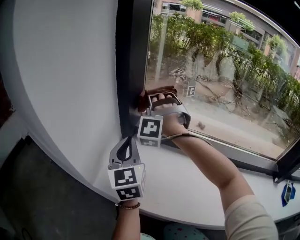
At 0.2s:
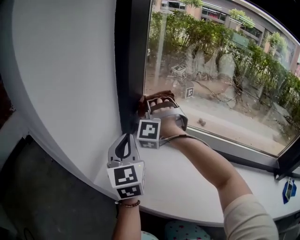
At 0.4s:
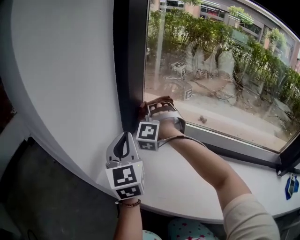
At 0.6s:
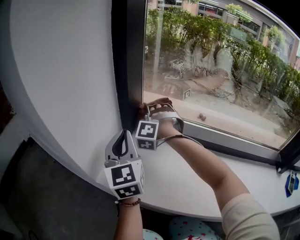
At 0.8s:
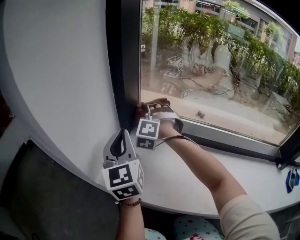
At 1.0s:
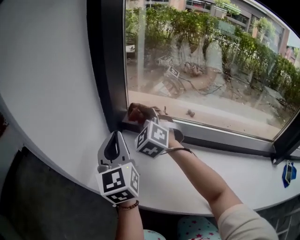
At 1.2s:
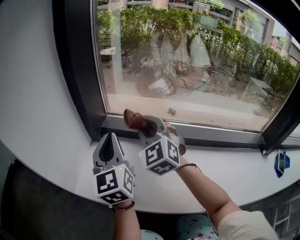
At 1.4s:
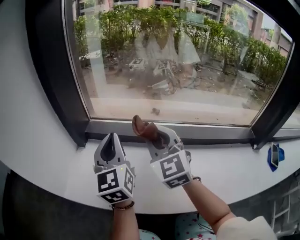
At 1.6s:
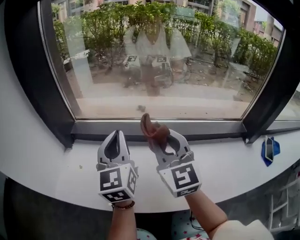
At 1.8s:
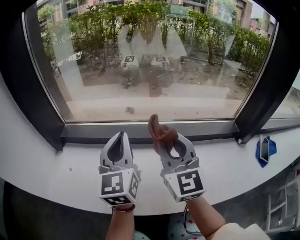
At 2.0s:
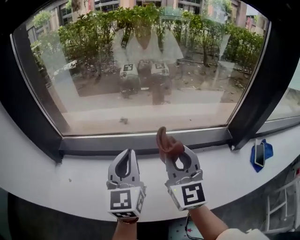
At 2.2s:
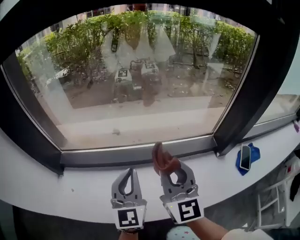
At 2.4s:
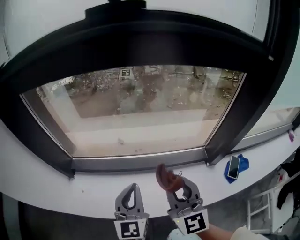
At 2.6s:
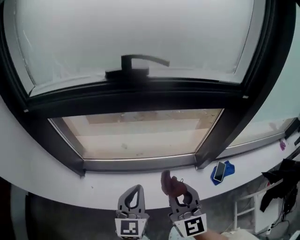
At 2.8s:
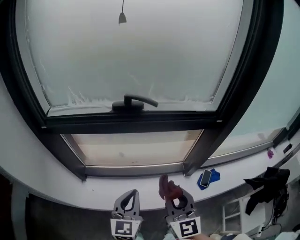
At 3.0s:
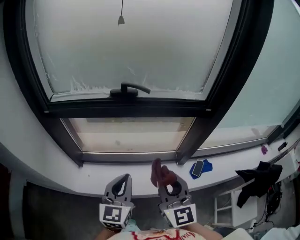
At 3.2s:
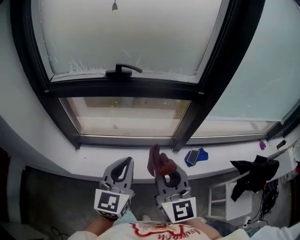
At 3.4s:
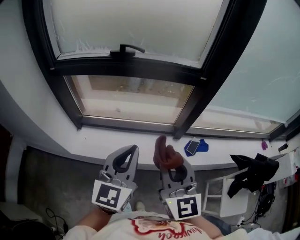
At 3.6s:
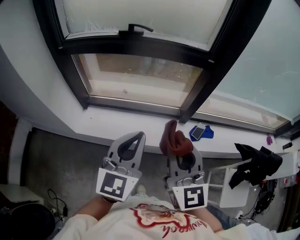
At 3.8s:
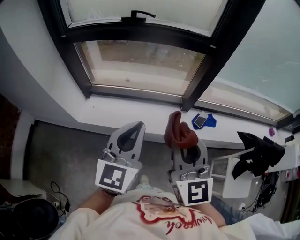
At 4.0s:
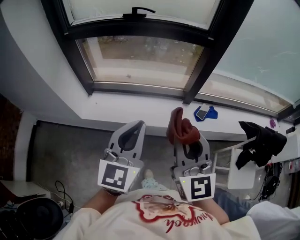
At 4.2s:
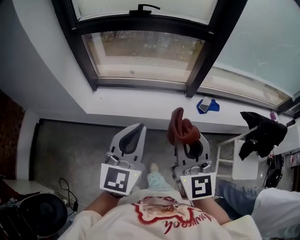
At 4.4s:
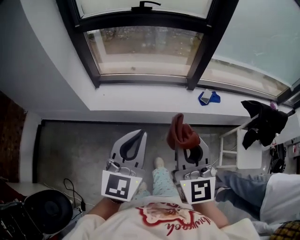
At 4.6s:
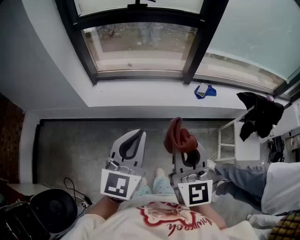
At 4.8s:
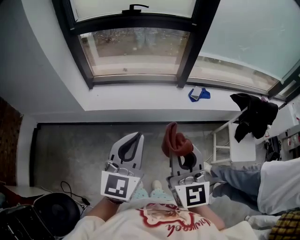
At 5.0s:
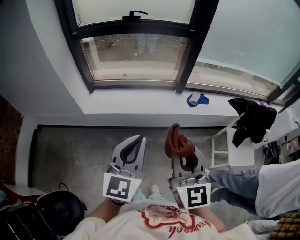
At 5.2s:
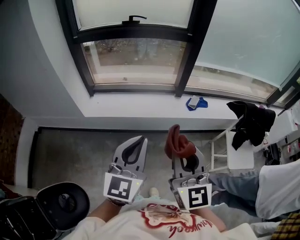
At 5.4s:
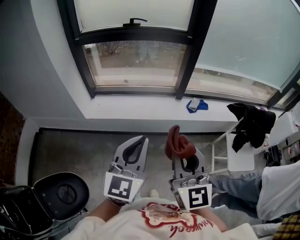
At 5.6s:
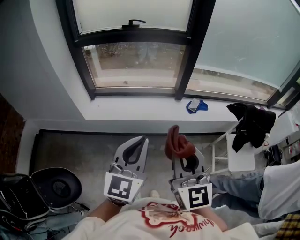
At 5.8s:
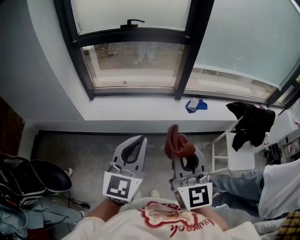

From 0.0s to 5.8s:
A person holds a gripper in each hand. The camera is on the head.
From 0.0s to 1.4s: The left gripper ends up roughly 15 cm from where it was.
From 1.4s to 2.8s: The left gripper heads upward, covering roughly 40 cm, and changes its angle by approximately 30 degrees.
From 2.8s to 4.4s: The left gripper changes place by approximately 40 cm.
From 4.4s to 5.8s: The left gripper ends up about 10 cm from where it was.

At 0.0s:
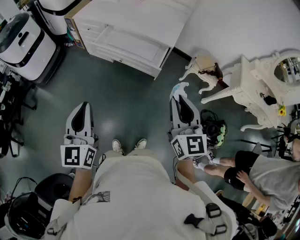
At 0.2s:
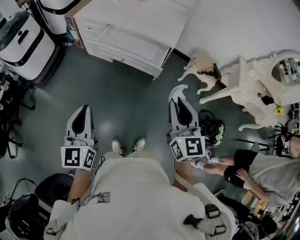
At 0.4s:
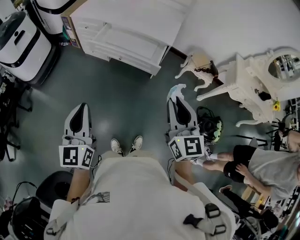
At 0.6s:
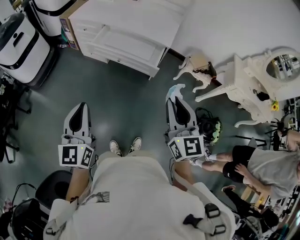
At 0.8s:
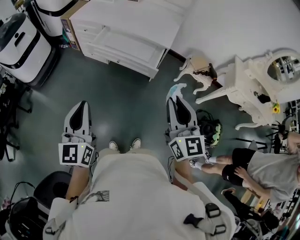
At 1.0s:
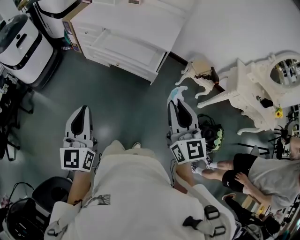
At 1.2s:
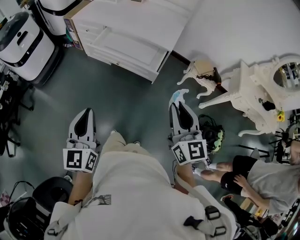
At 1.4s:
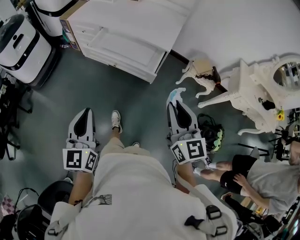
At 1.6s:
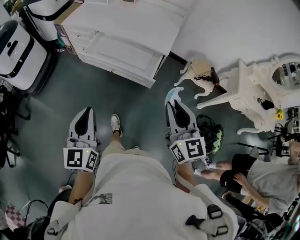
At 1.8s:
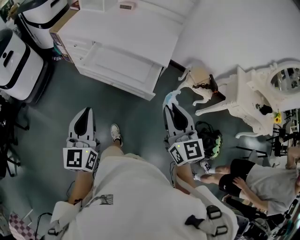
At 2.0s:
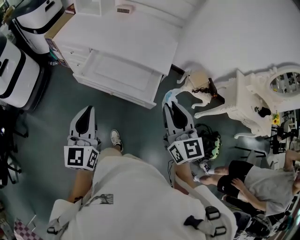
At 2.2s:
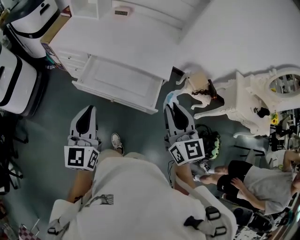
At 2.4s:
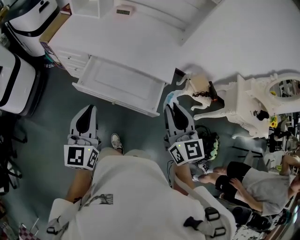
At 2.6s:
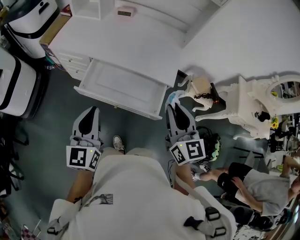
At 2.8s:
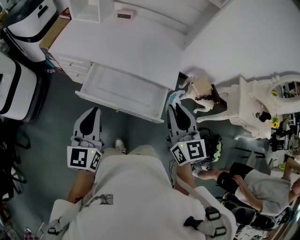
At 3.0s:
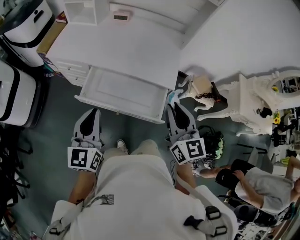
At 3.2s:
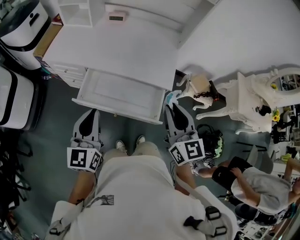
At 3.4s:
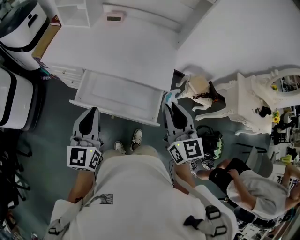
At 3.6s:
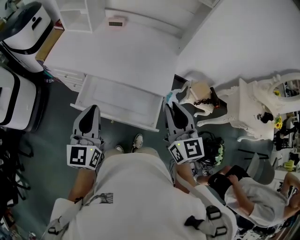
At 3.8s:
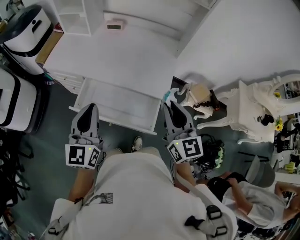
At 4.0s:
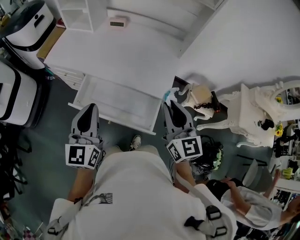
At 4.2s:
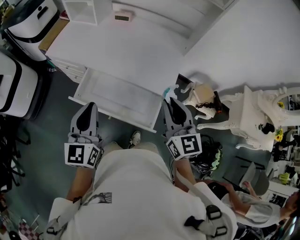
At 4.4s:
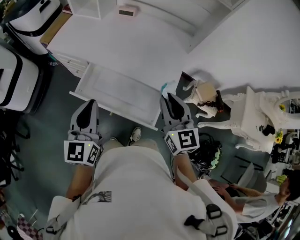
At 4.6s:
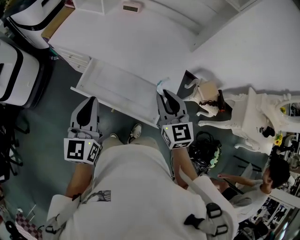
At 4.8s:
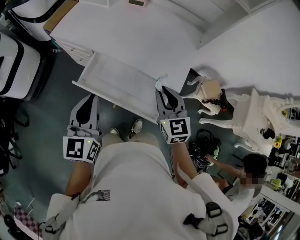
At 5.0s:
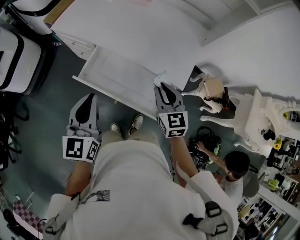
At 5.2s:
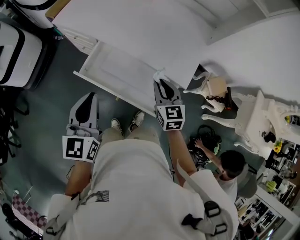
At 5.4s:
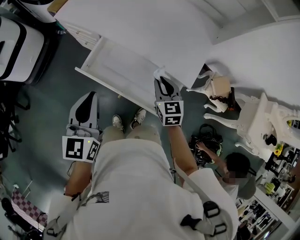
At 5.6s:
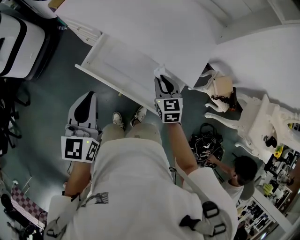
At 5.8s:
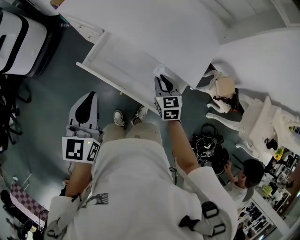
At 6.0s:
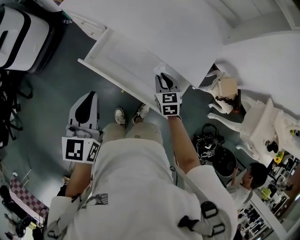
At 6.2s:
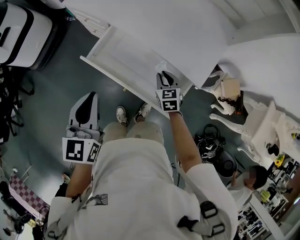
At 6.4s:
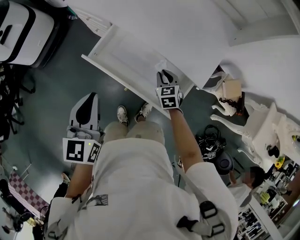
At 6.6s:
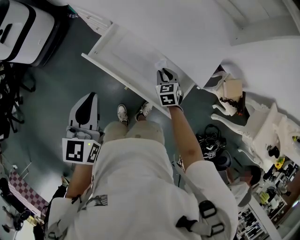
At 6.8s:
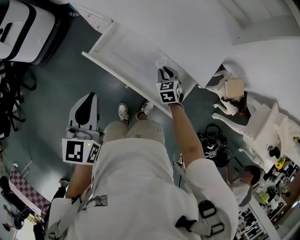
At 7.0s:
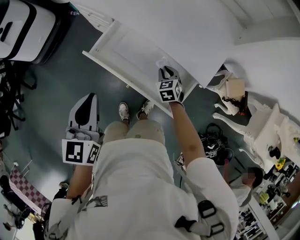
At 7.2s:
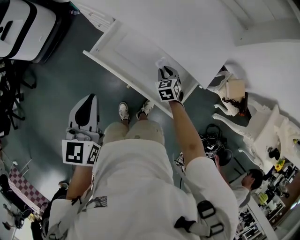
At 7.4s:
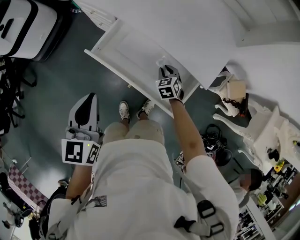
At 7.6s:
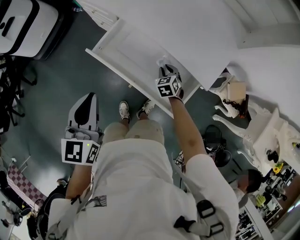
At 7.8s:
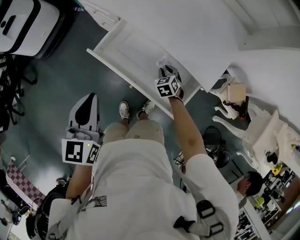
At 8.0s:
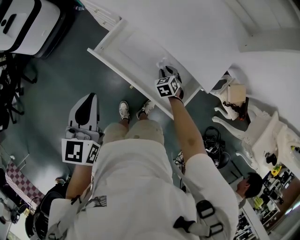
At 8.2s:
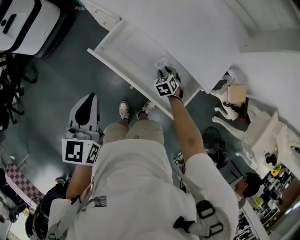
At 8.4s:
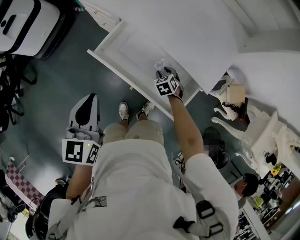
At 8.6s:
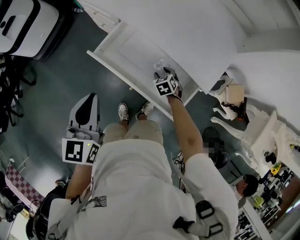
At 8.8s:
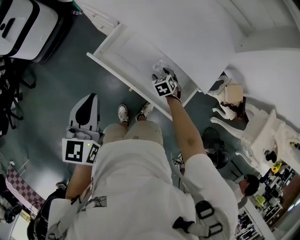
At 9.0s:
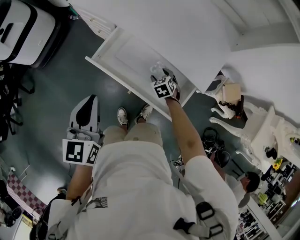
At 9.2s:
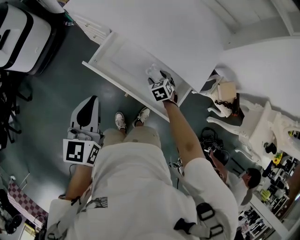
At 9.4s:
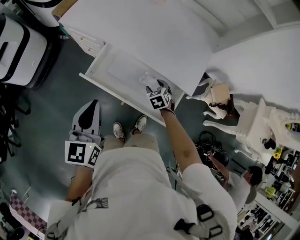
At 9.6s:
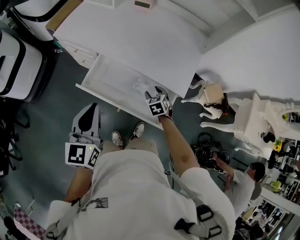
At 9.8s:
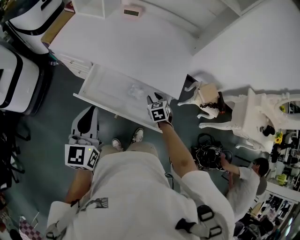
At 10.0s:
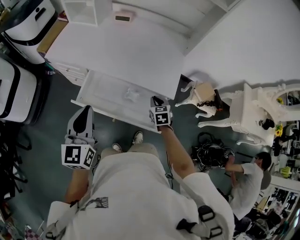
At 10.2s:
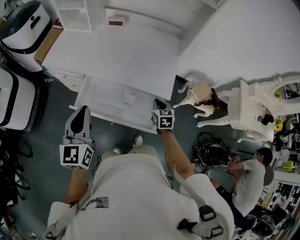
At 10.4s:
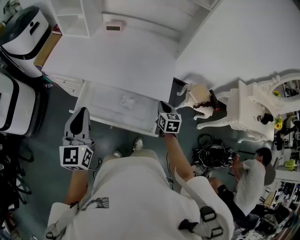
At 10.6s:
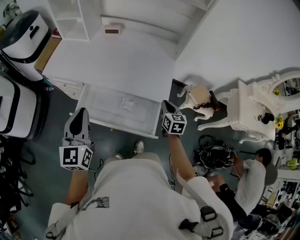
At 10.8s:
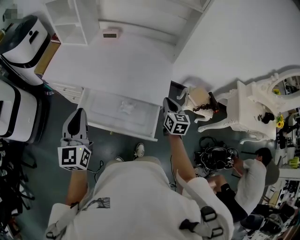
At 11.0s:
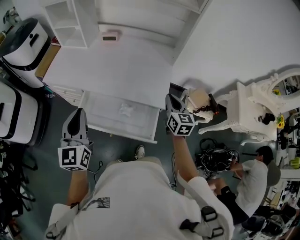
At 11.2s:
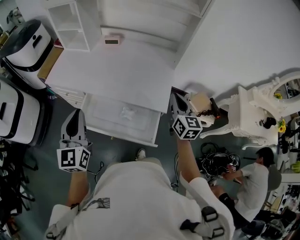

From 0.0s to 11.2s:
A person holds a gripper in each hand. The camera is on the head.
From 0.0s to 1.6s: The grippers both shift forward by about 10 cm.
From 1.6s to 3.2s: Both grippers travel together forward, about 30 cm.
From 3.2s to 4.8s: The left gripper ends up about 5 cm from where it was. The right gripper travels forward and downward by some 15 cm.
From 4.8s to 6.4s: The left gripper is displaced downward by some 5 cm. Meanwhile the right gripper shifts about 25 cm downward, and rotates approximately 30 degrees.
From 6.4s to 8.0s: The right gripper travels downward by roughly 10 cm.
From 8.0s to 9.6s: The right gripper shifts approximately 10 cm upward, and opens up, while the left gripper moves upward, some 5 cm.
From 9.6s to 11.2s: The left gripper goes about 10 cm upward, while the right gripper moves upward and to the right, about 35 cm, angles its fingers upward, by some 50 degrees, and closes.

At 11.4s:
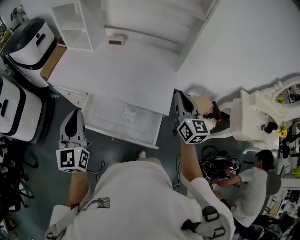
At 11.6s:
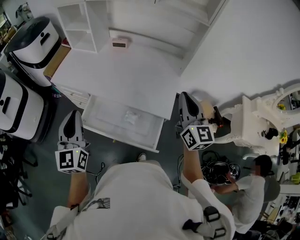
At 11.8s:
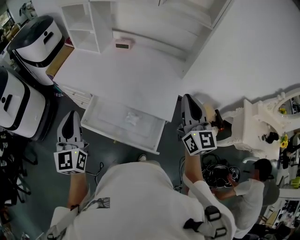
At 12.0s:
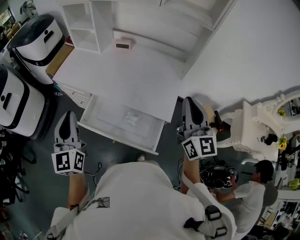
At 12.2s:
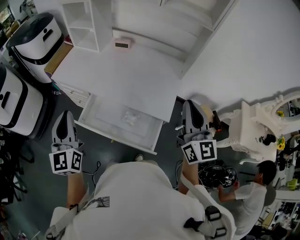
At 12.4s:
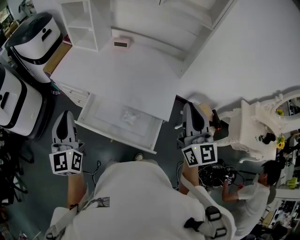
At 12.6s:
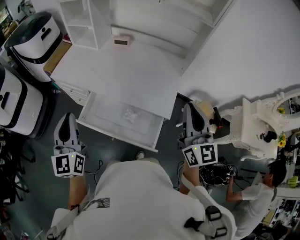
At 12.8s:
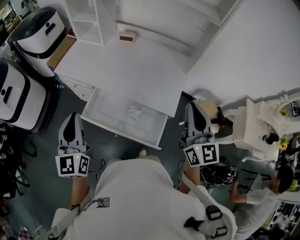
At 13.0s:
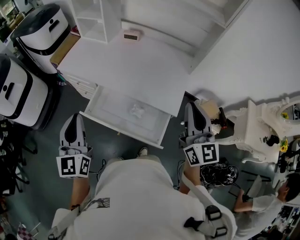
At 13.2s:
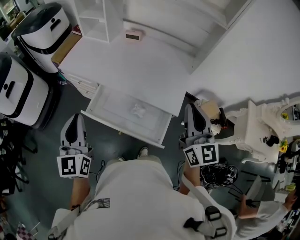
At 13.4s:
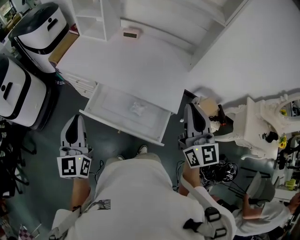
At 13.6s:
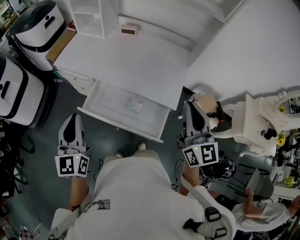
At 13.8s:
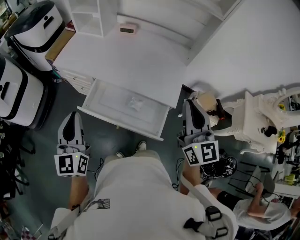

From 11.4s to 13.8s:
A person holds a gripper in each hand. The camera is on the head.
From 11.4s to 12.6s: The right gripper heads upward and backward, covering roughly 10 cm.
From 12.6s to 13.8s: The left gripper ends up approximately 5 cm from where it was. The right gripper shifts about 5 cm to the left.

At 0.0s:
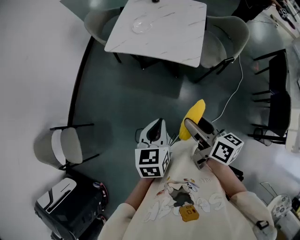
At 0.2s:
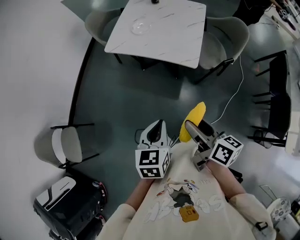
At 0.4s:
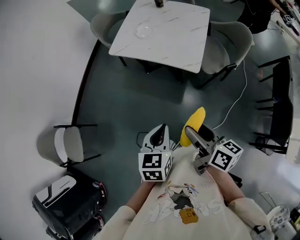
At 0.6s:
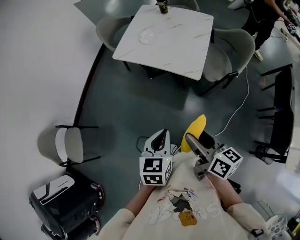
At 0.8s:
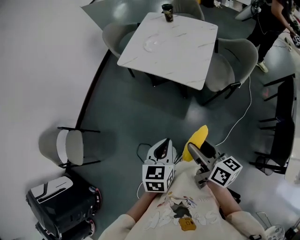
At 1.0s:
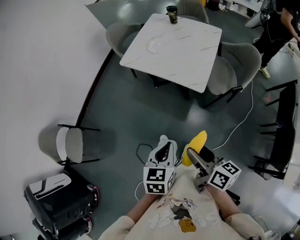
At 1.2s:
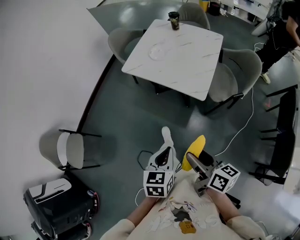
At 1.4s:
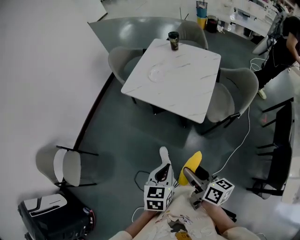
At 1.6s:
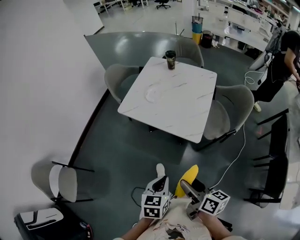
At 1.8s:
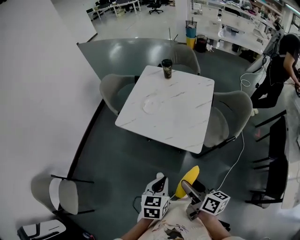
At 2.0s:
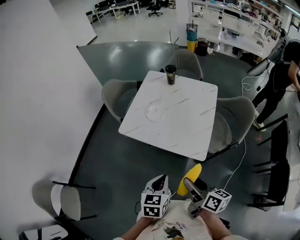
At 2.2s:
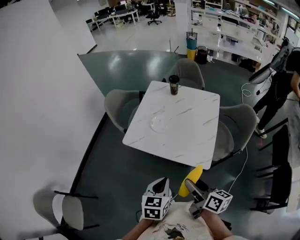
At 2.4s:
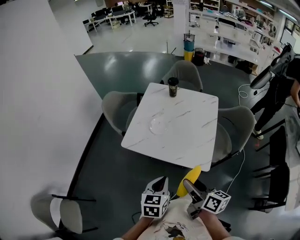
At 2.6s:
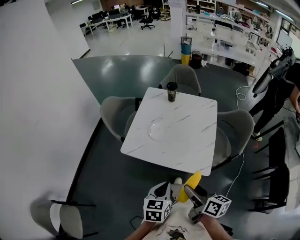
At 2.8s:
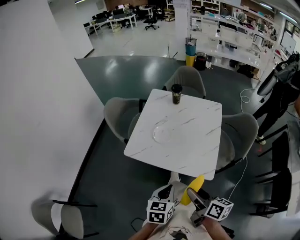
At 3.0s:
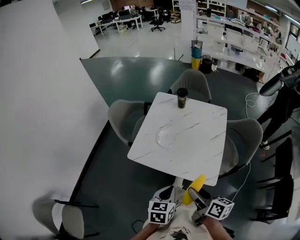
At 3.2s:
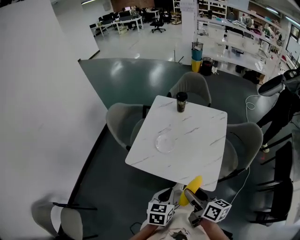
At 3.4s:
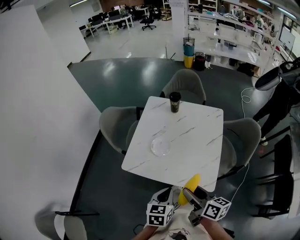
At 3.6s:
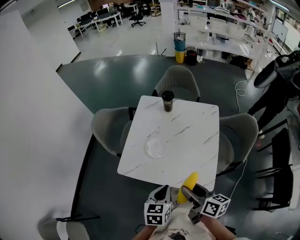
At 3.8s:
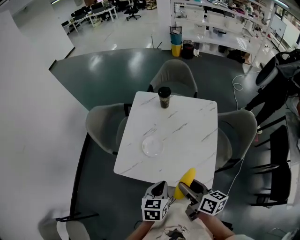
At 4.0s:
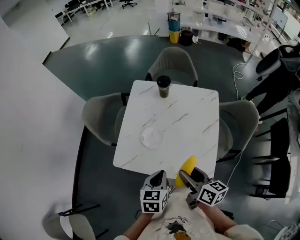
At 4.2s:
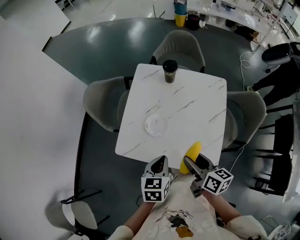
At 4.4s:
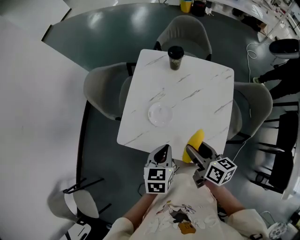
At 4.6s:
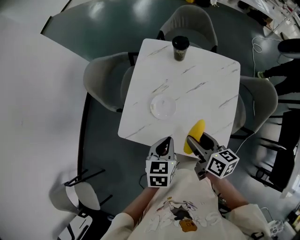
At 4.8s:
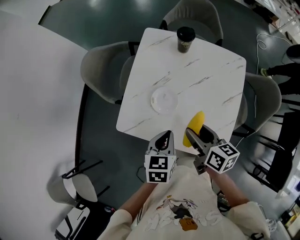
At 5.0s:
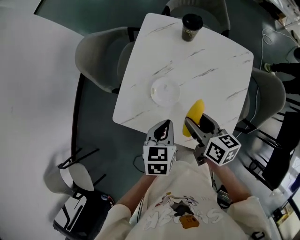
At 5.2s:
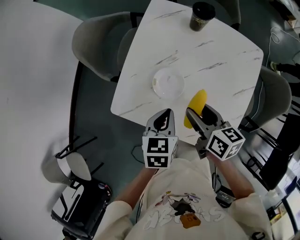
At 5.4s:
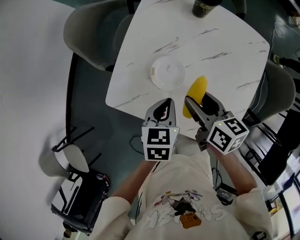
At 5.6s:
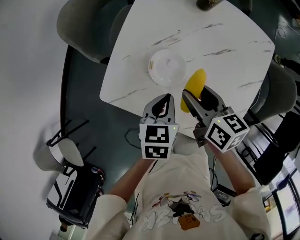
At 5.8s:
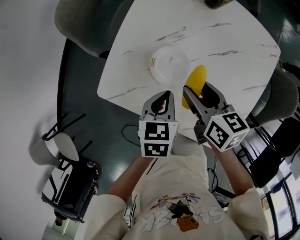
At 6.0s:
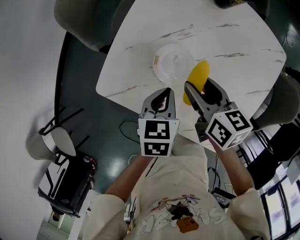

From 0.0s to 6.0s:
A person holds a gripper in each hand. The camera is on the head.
From 0.0s to 1.6s: The right gripper travels forward by some 5 cm. Meanwhile the left gripper travels forward and to the right by approximately 10 cm.
From 1.6s to 3.0s: The two grippers go approximately 25 cm forward.
From 3.0s to 4.4s: The grippers both shift forward by some 20 cm.
From 4.4s to 6.0s: Both grippers move downward and forward, some 20 cm. The right gripper changes its angle by some 20 degrees.
